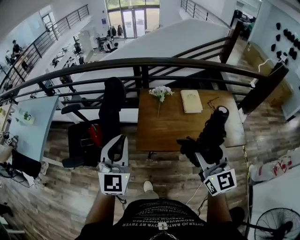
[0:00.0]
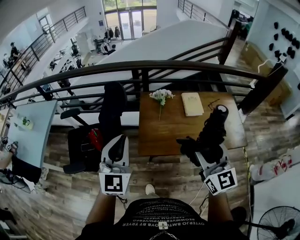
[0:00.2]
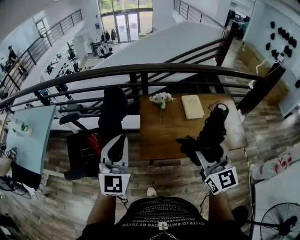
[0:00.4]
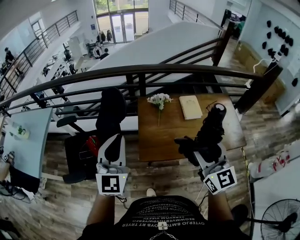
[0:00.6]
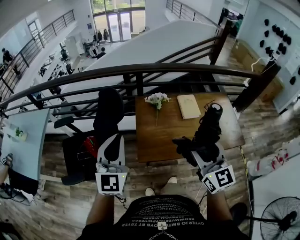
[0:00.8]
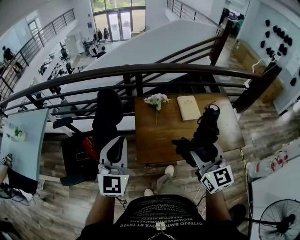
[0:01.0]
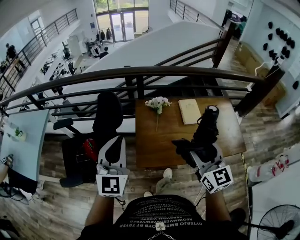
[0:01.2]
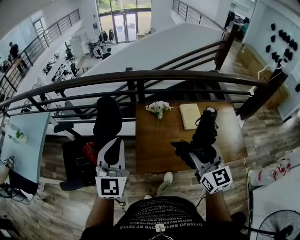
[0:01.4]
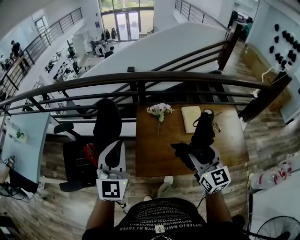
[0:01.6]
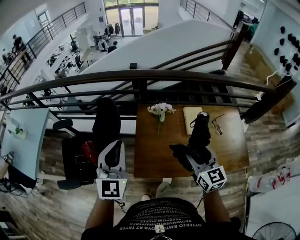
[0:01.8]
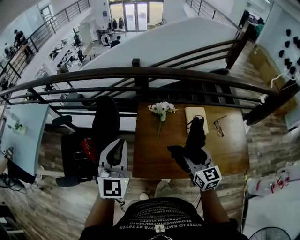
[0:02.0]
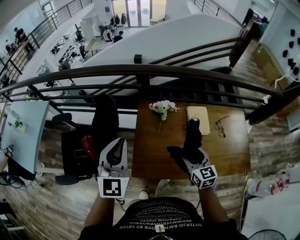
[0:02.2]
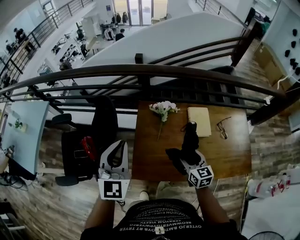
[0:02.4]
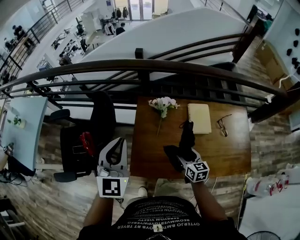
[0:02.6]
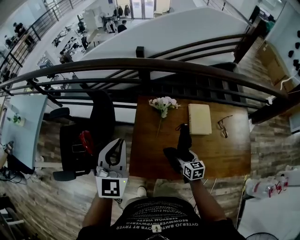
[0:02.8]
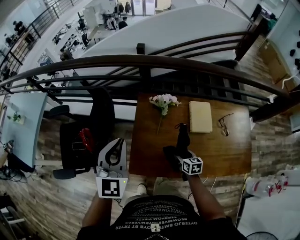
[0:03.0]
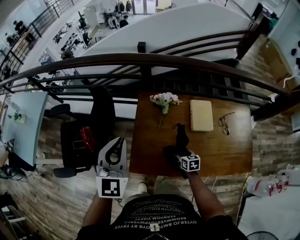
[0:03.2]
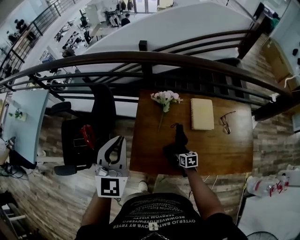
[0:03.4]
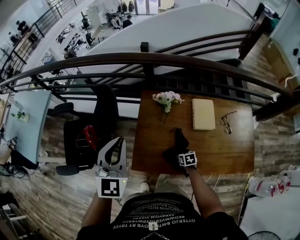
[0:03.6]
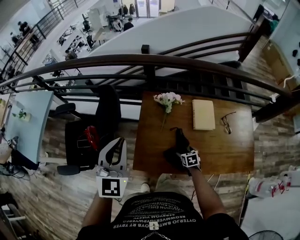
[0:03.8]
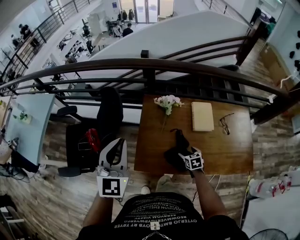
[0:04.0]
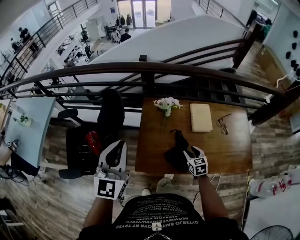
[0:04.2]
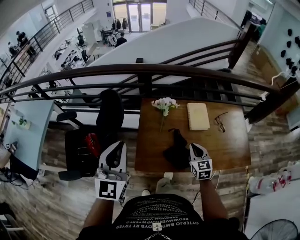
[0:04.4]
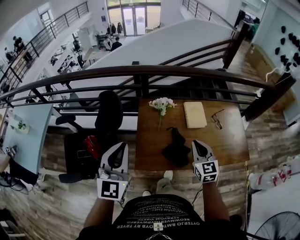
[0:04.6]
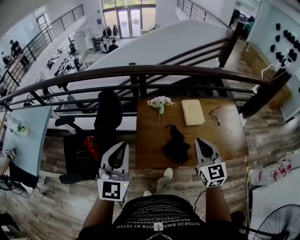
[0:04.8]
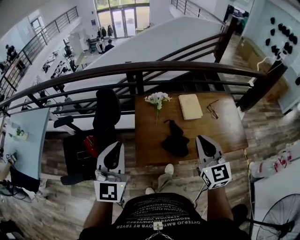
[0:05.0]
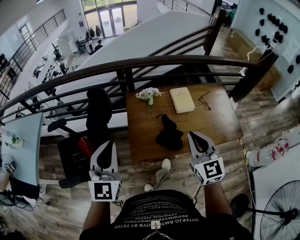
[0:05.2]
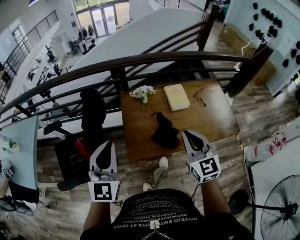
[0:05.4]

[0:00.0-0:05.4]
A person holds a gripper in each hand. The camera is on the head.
0:00.0 to 0:01.4: The grippers both shift forward by approximately 15 cm.
0:01.4 to 0:02.8: The left gripper shifts some 15 cm forward and downward. Meanwhile the right gripper travels downward by about 35 cm, and angles its fingers downward, by approximately 30 degrees.
0:02.8 to 0:04.0: The left gripper changes place by some 5 cm. The right gripper heads downward, covering roughly 5 cm.
0:04.0 to 0:05.4: The left gripper is displaced backward by about 10 cm. The right gripper travels upward by roughly 35 cm, angles its fingers upward, by approximately 40 degrees, and closes.

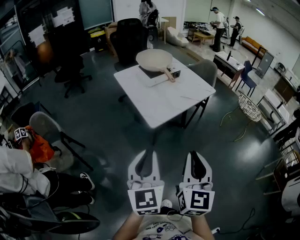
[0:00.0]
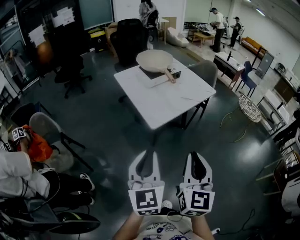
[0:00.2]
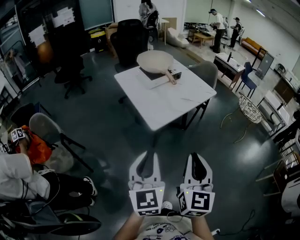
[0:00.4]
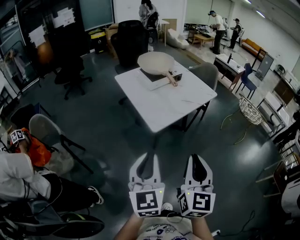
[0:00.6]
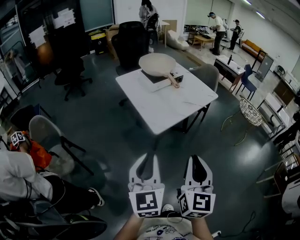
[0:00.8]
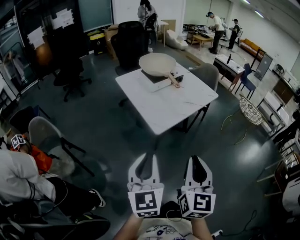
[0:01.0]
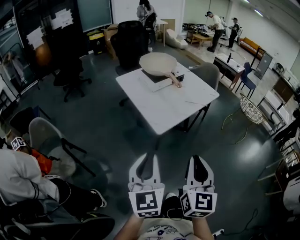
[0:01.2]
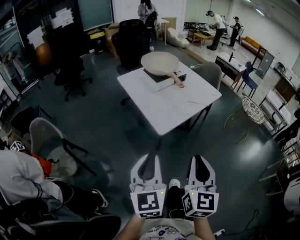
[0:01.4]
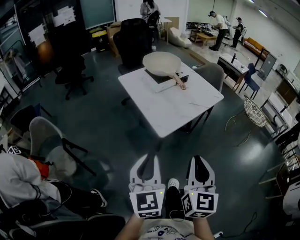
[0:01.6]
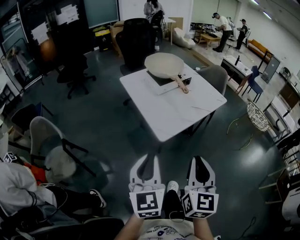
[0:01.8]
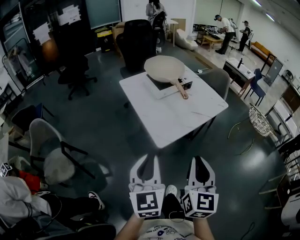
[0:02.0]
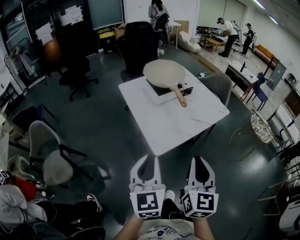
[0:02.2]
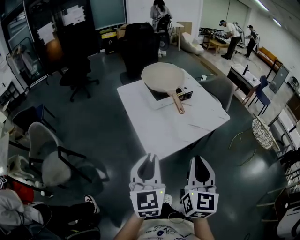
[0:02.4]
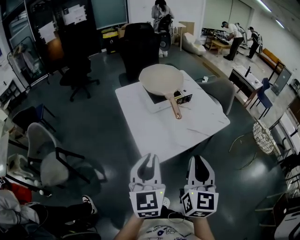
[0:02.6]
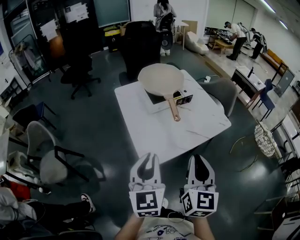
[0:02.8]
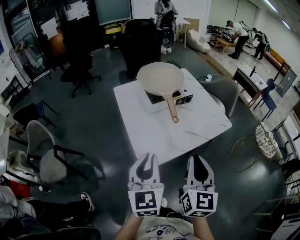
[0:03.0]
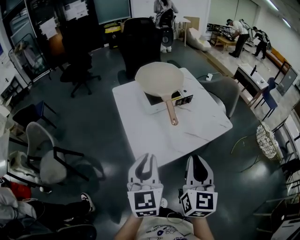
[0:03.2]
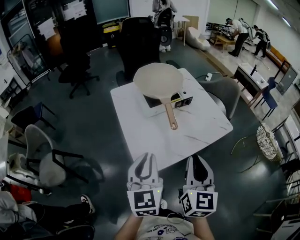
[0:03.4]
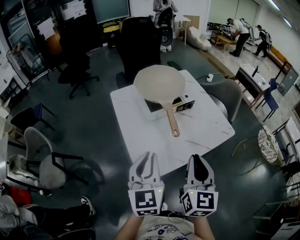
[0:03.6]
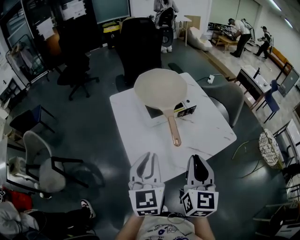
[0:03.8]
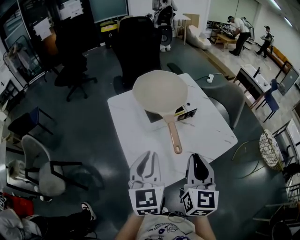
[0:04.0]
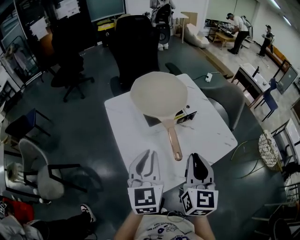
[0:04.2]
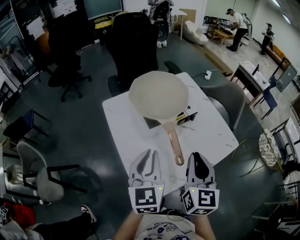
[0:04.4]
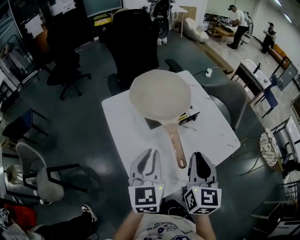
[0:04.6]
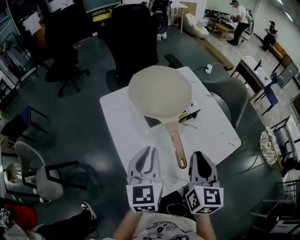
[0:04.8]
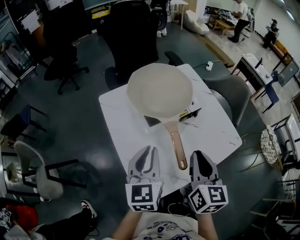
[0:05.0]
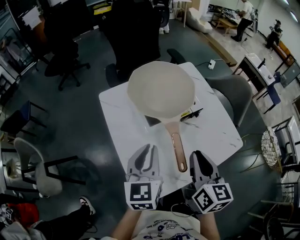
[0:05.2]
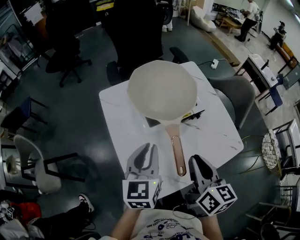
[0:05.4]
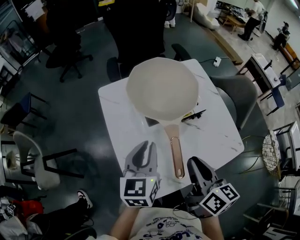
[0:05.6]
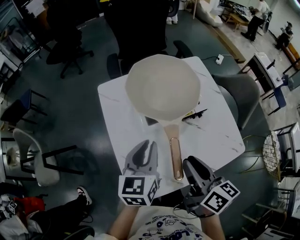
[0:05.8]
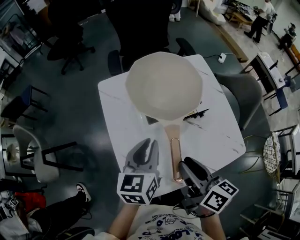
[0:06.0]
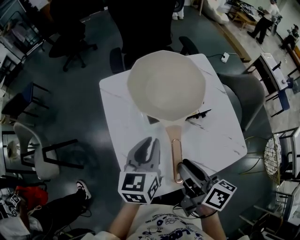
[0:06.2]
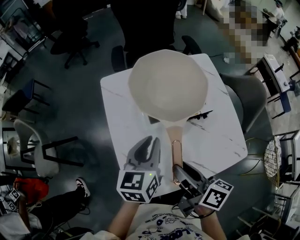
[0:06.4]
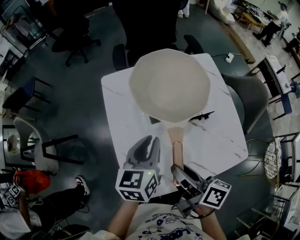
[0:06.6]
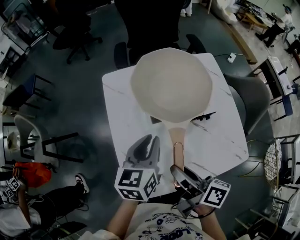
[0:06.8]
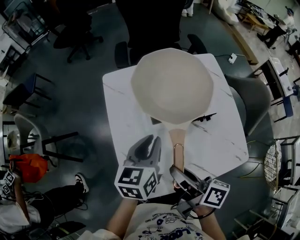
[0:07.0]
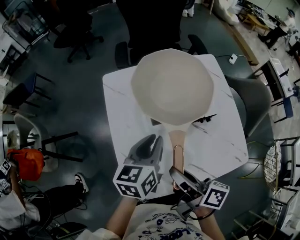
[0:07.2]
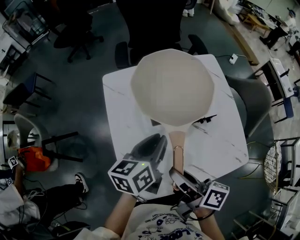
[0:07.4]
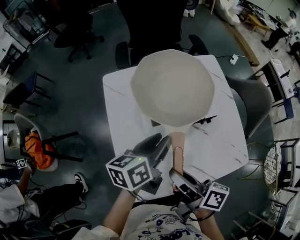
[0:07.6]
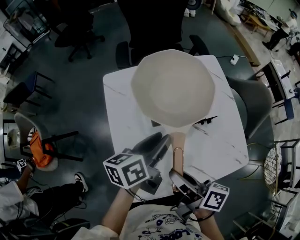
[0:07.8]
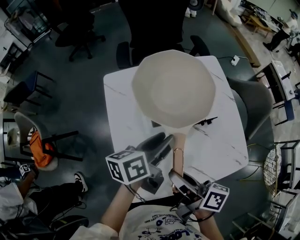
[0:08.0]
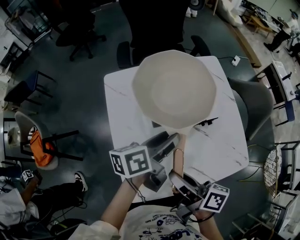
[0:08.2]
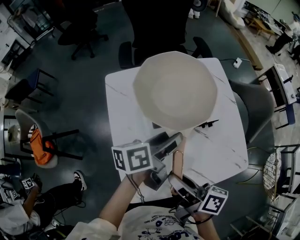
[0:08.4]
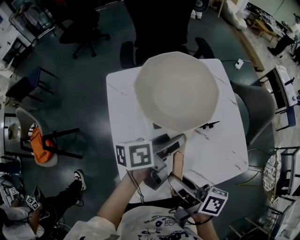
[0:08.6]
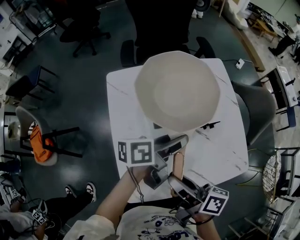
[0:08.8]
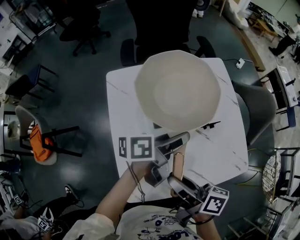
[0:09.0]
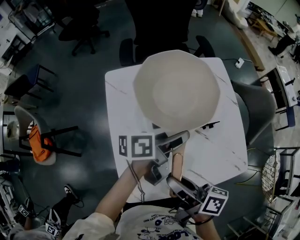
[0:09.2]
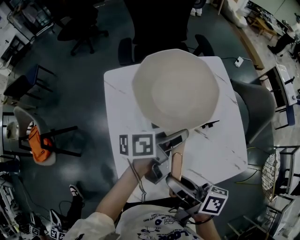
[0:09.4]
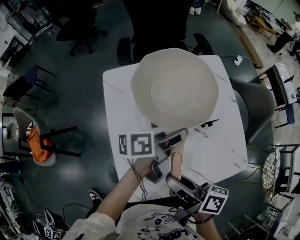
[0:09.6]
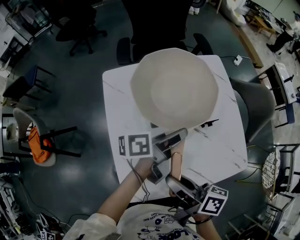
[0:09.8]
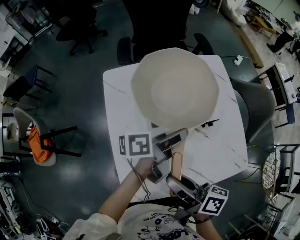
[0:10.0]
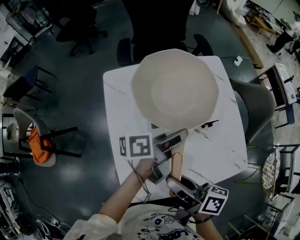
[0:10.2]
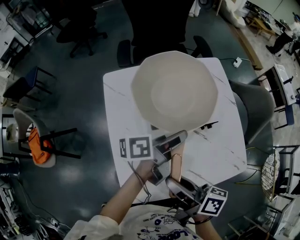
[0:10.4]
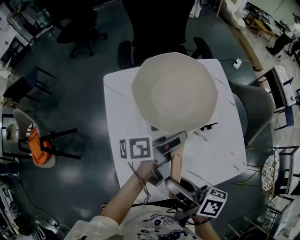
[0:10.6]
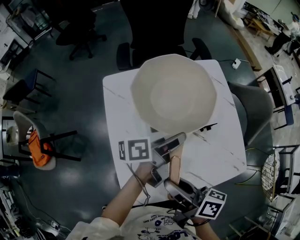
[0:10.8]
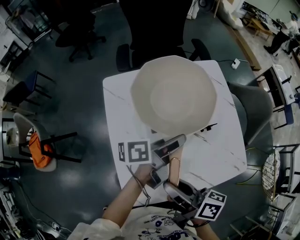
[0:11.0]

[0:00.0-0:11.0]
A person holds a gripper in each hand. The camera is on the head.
0:00.0 to 0:01.6: The right gripper goes approximately 5 cm forward. Meanwhile the left gripper heads forward and to the left, covering some 10 cm.
0:01.6 to 0:03.2: Both grippers move forward and to the right, roughly 25 cm.
0:03.2 to 0:04.8: Both grippers travel together forward, some 20 cm.
0:04.8 to 0:06.2: The right gripper shifts about 5 cm downward, turns by roughly 60 degrees, and opens, while the left gripper shifts approximately 10 cm forward and downward.
0:06.2 to 0:07.8: The left gripper turns by roughly 30 degrees.
0:07.8 to 0:09.4: The left gripper goes about 5 cm to the right, and changes its angle by approximately 20 degrees.
0:09.4 to 0:11.0: There are only small adjustments of the grippers.

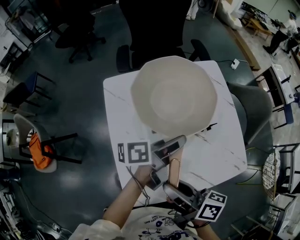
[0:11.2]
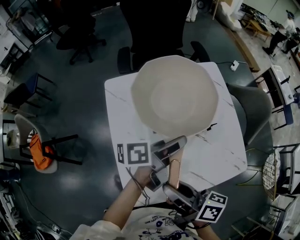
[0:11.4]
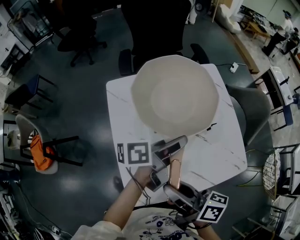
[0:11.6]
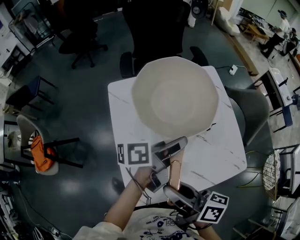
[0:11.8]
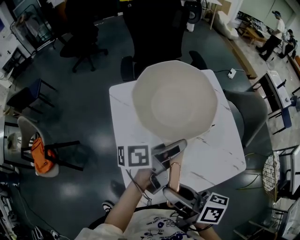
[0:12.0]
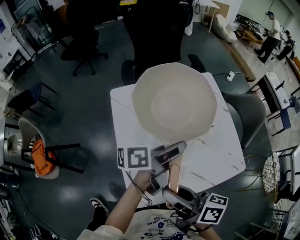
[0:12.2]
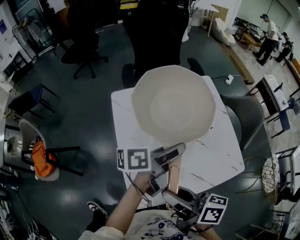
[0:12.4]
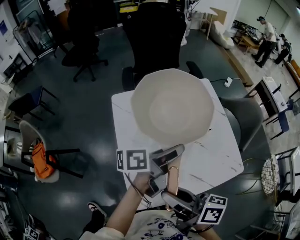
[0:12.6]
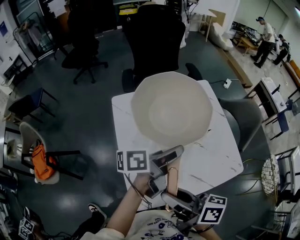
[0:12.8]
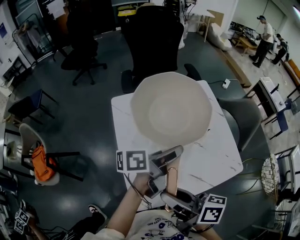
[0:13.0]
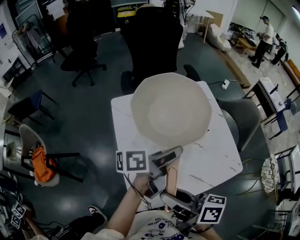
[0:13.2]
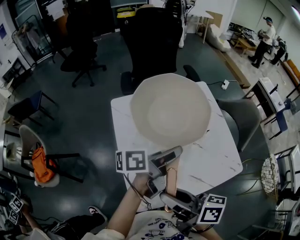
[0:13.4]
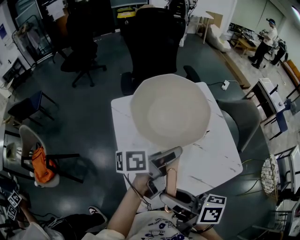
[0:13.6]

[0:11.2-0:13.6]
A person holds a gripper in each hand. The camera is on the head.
0:11.2 to 0:12.4: The left gripper goes roughly 5 cm upward, while the right gripper moves some 5 cm.
0:12.4 to 0:13.6: The grippers stay close to where they were, moving slightly.

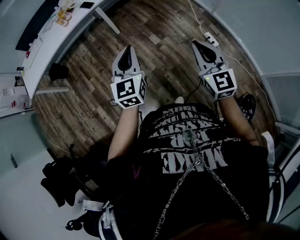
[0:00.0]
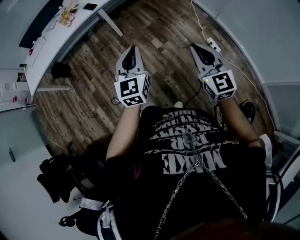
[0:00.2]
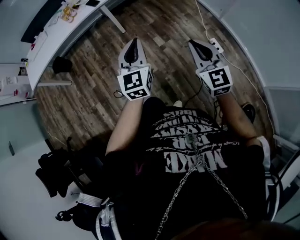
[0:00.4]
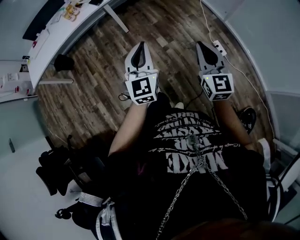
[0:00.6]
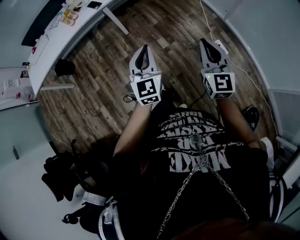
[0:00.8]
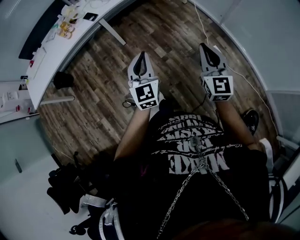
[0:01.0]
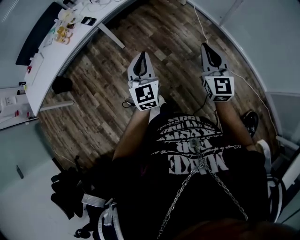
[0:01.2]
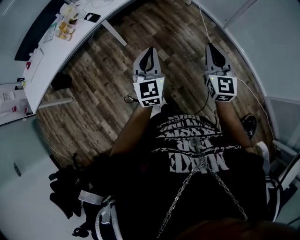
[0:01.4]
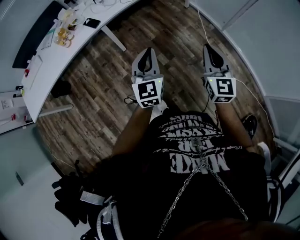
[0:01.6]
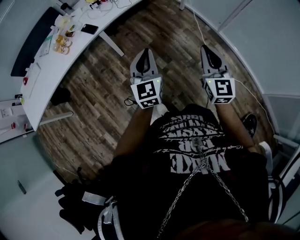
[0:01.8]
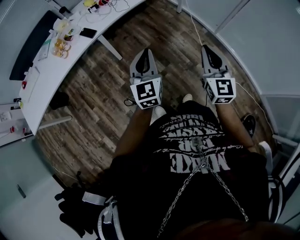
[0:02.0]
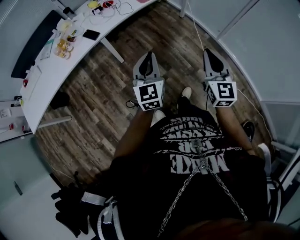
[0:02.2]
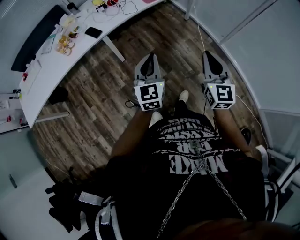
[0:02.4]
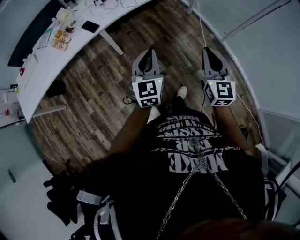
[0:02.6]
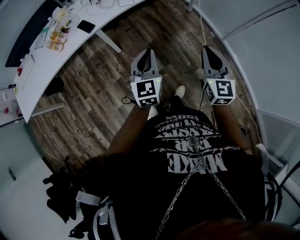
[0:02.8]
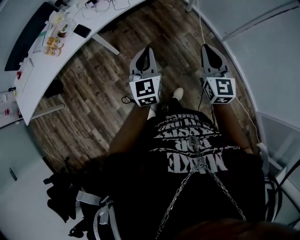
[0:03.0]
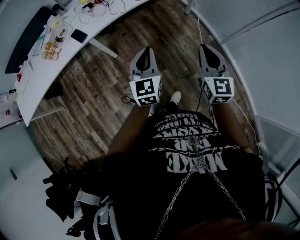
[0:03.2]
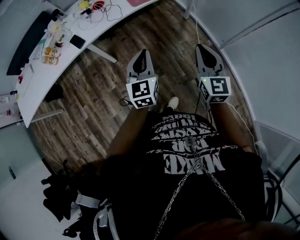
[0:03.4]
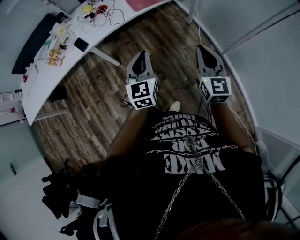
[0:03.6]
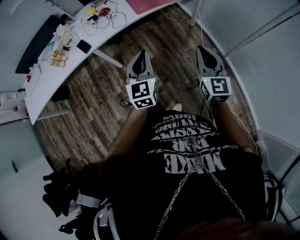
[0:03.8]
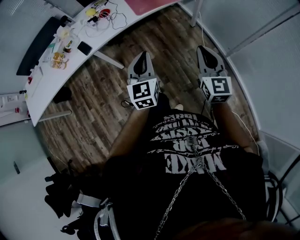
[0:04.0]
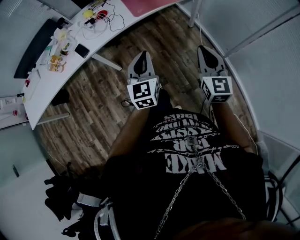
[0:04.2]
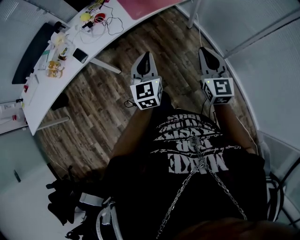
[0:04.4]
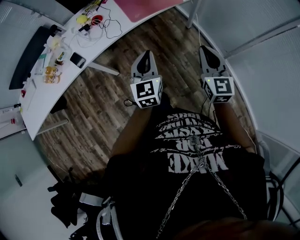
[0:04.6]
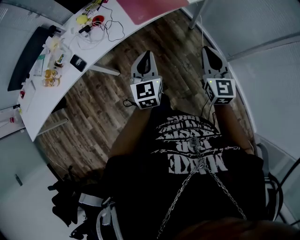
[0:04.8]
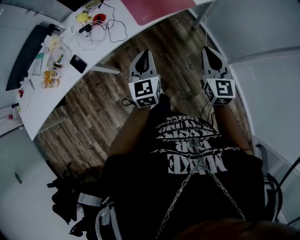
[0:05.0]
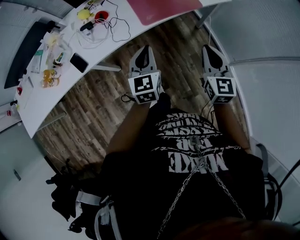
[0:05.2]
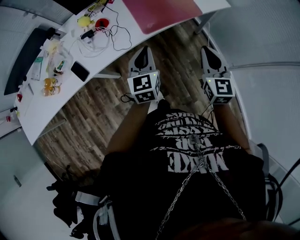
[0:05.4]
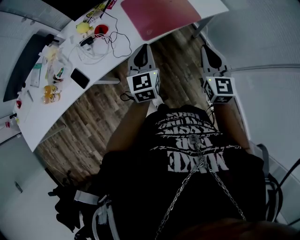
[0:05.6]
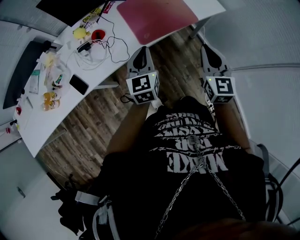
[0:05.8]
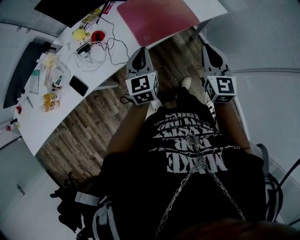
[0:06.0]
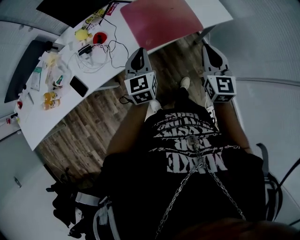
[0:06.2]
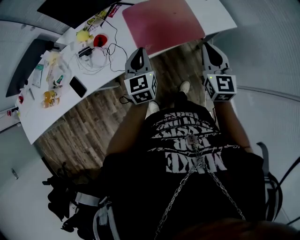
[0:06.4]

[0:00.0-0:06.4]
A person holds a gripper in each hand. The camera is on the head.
0:00.0 to 0:01.6: Both grippers move forward, some 30 cm.
0:01.6 to 0:03.2: Both grippers move forward and to the right, approximately 25 cm.
0:03.2 to 0:04.8: The two grippers go some 20 cm forward.
0:04.8 to 0:06.4: Both grippers travel together forward, roughly 30 cm.
